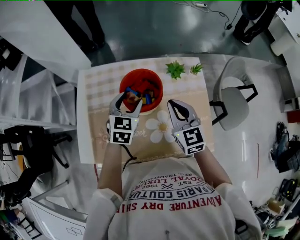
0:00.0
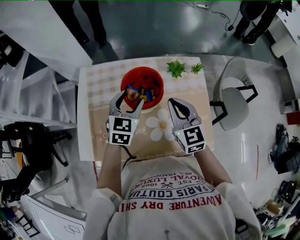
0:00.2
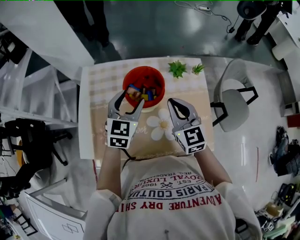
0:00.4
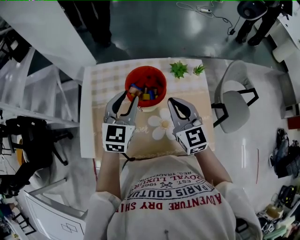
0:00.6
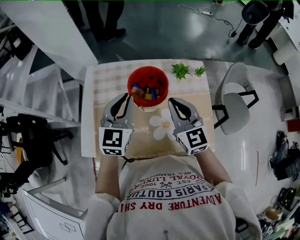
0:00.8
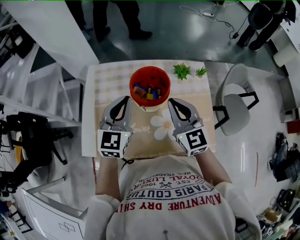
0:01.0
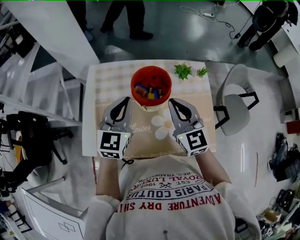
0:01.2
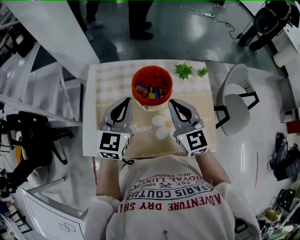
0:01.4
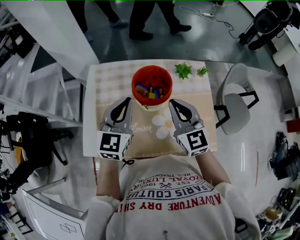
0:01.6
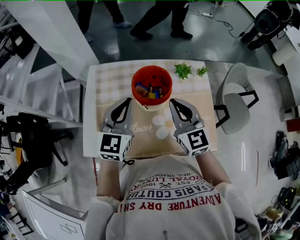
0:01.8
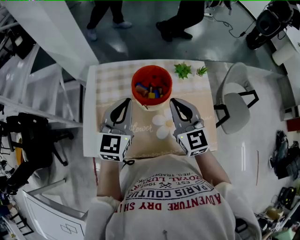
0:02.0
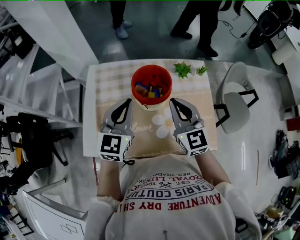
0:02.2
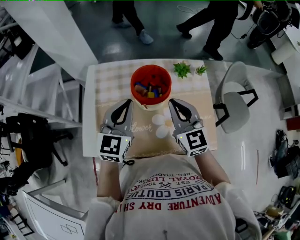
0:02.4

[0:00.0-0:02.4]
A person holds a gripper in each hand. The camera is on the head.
0:00.0 to 0:01.2: The right gripper heads upward, covering roughly 5 cm; the left gripper heads upward, backward and to the left, covering some 15 cm, and closes up.
0:01.2 to 0:02.4: There are only small adjustments of the grippers.

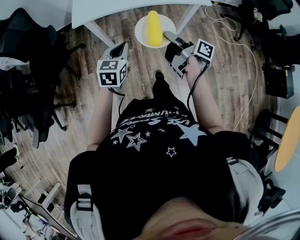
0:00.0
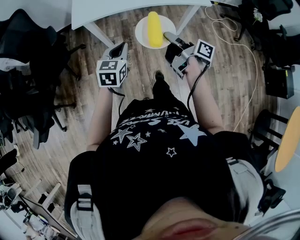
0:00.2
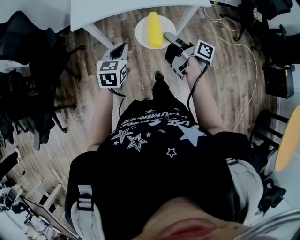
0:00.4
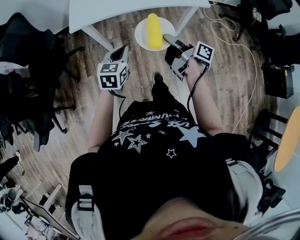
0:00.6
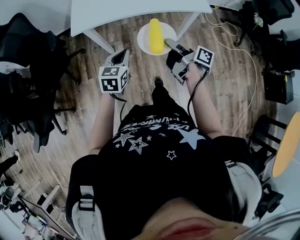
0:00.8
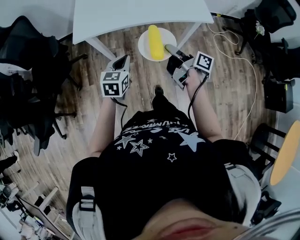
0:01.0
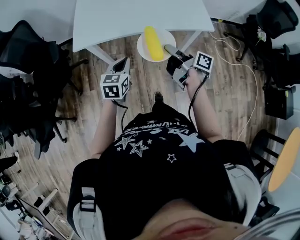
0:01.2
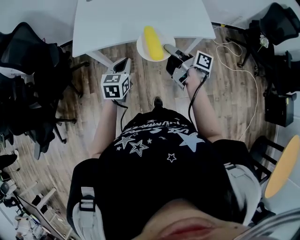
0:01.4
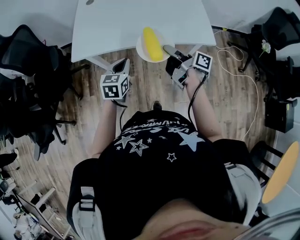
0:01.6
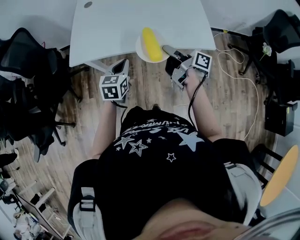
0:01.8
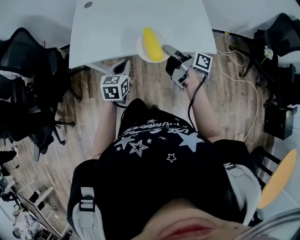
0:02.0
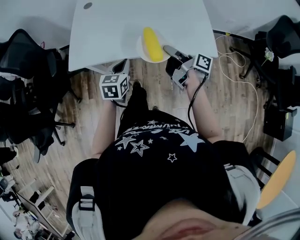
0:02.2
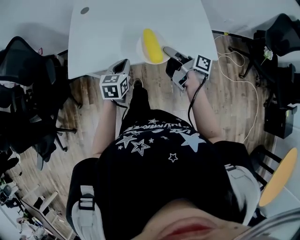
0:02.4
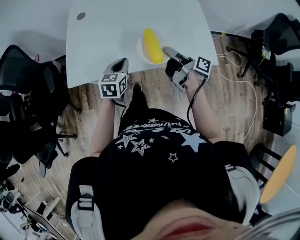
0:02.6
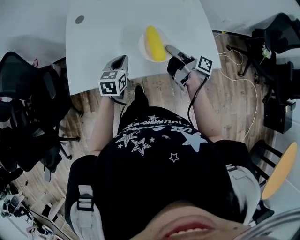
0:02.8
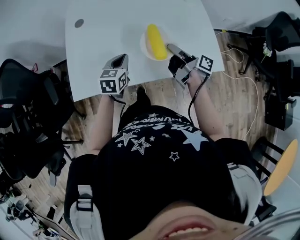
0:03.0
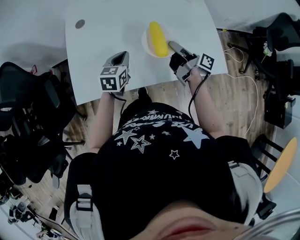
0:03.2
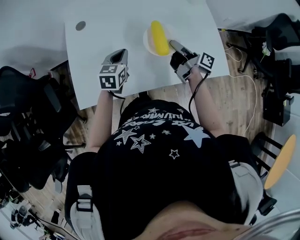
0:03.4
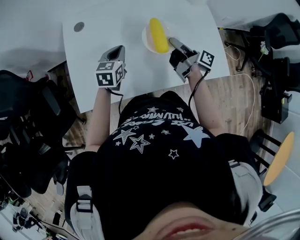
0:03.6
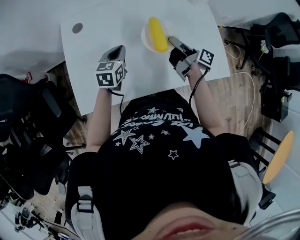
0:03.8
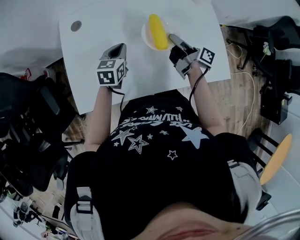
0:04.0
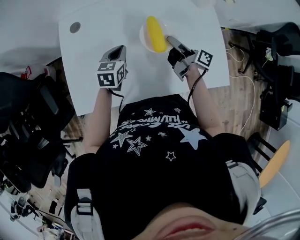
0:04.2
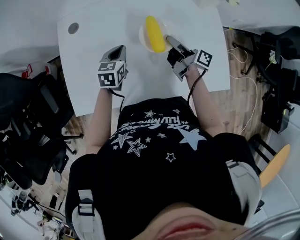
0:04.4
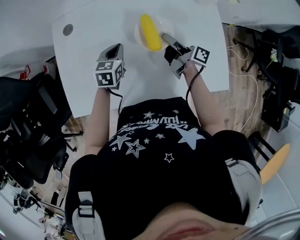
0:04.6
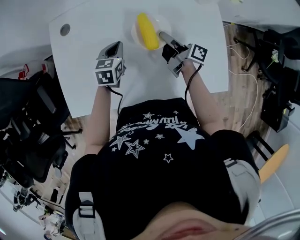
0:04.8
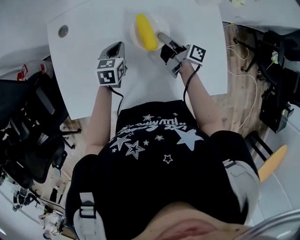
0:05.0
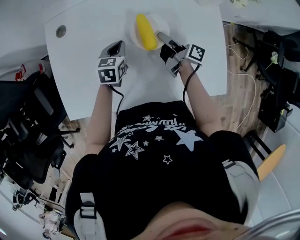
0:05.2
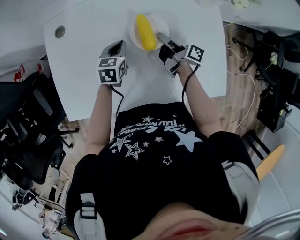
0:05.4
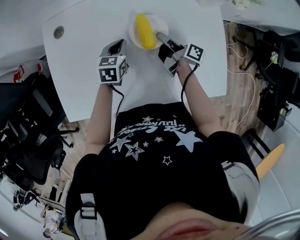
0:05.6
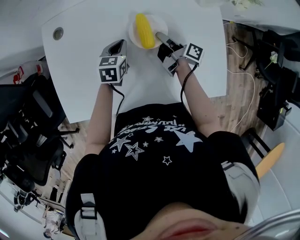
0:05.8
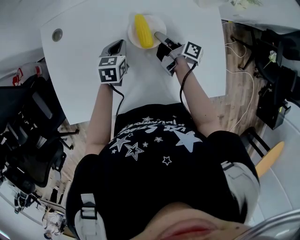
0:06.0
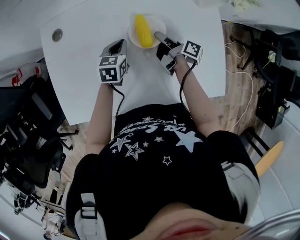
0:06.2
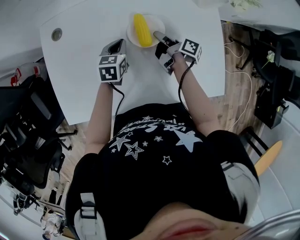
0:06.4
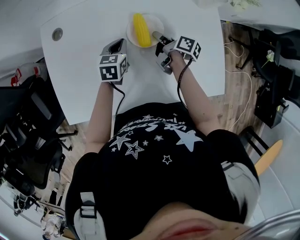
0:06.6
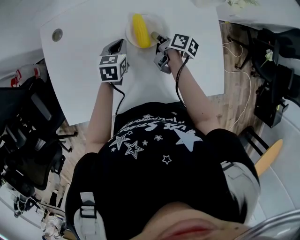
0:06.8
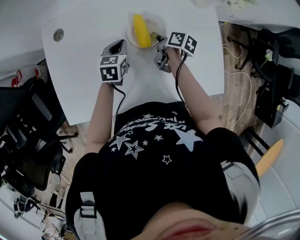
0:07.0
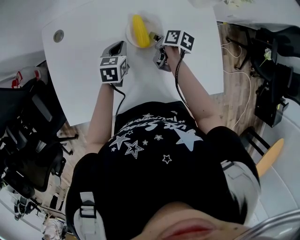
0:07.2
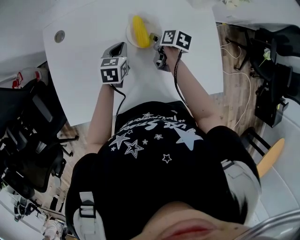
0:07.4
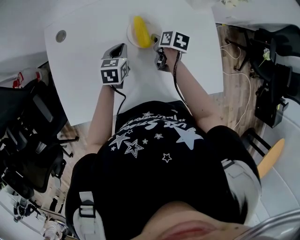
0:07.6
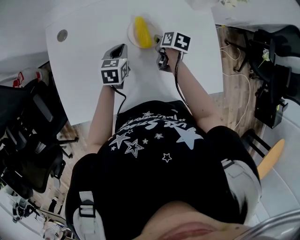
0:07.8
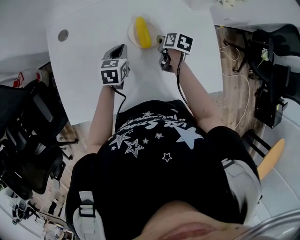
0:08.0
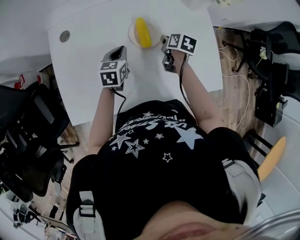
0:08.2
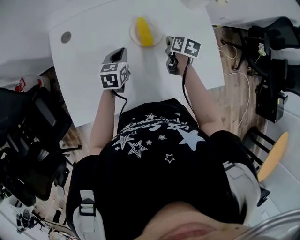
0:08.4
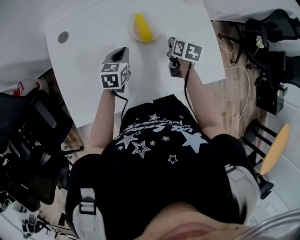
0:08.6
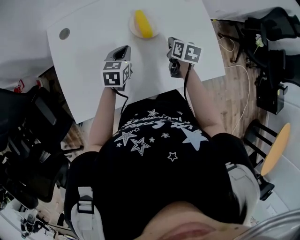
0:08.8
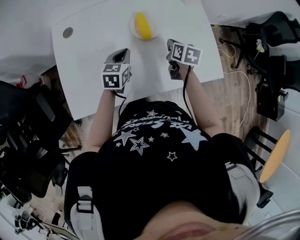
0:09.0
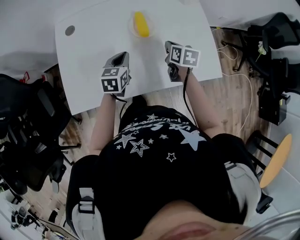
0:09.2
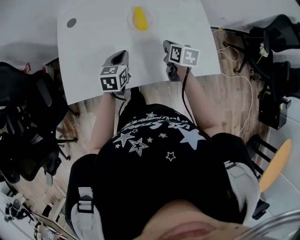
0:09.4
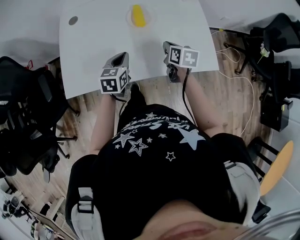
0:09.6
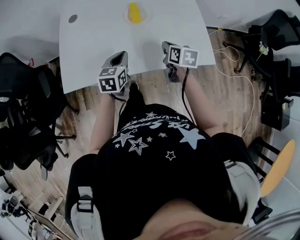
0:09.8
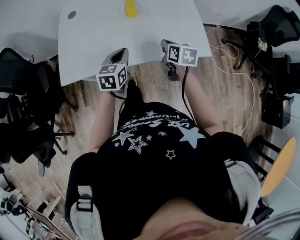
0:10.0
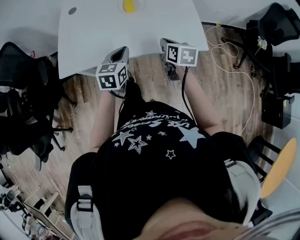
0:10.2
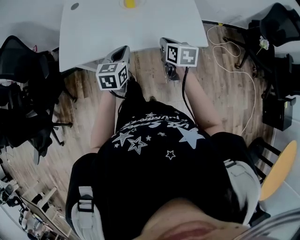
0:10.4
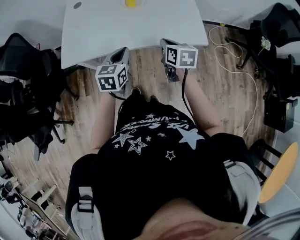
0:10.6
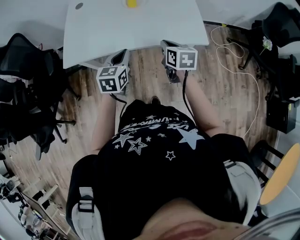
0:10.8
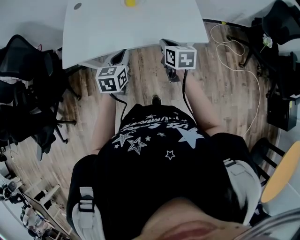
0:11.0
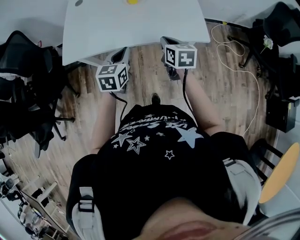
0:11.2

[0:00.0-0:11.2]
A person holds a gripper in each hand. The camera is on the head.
0:00.0 to 0:01.6: The left gripper shifts by about 20 cm.
0:01.6 to 0:03.2: The left gripper changes place by approximately 30 cm.
0:03.2 to 0:04.8: The left gripper moves roughly 15 cm.
0:04.8 to 0:06.4: The left gripper moves approximately 5 cm.
0:08.0 to 0:09.6: The left gripper changes place by some 20 cm.
0:09.6 to 0:11.2: The left gripper changes place by roughly 20 cm.

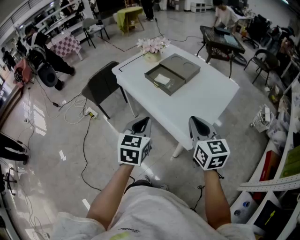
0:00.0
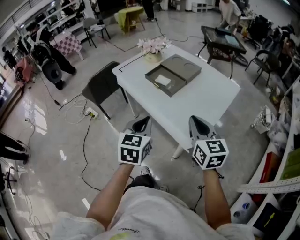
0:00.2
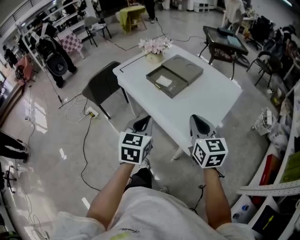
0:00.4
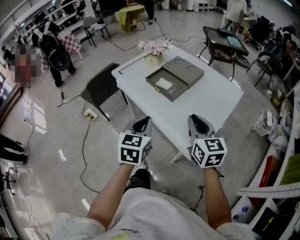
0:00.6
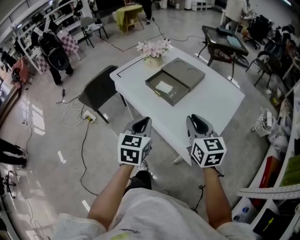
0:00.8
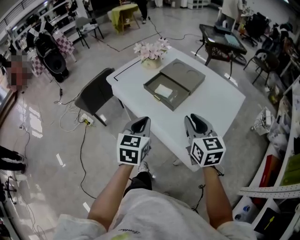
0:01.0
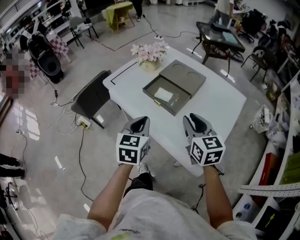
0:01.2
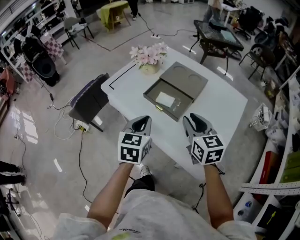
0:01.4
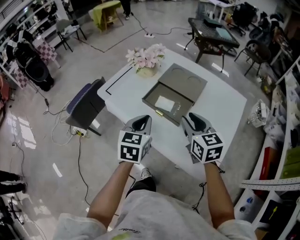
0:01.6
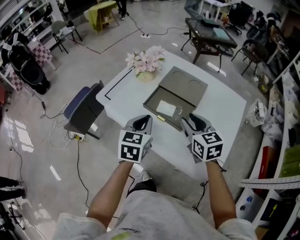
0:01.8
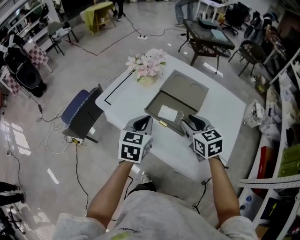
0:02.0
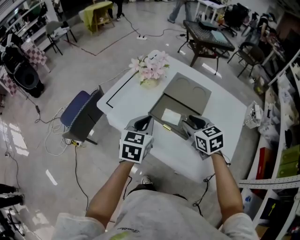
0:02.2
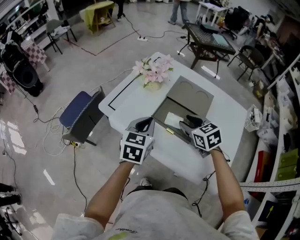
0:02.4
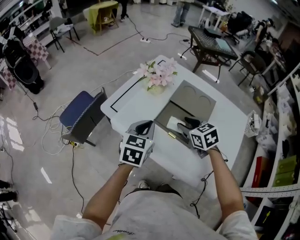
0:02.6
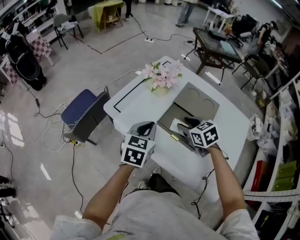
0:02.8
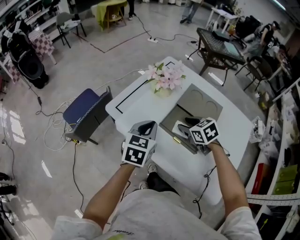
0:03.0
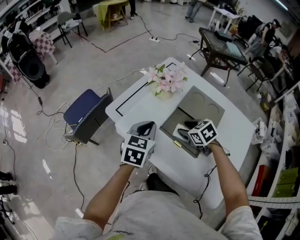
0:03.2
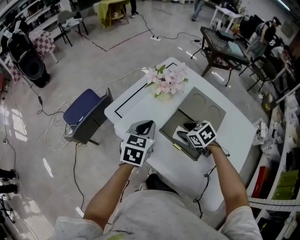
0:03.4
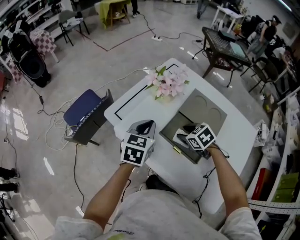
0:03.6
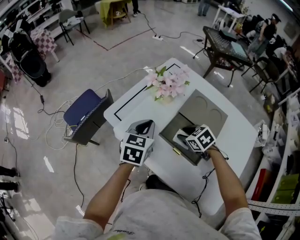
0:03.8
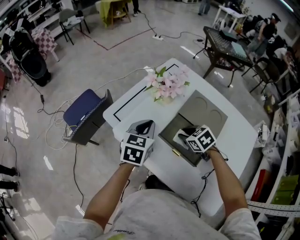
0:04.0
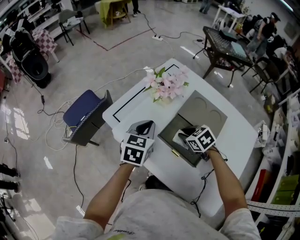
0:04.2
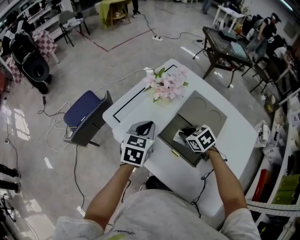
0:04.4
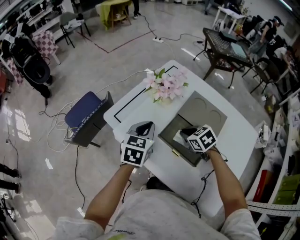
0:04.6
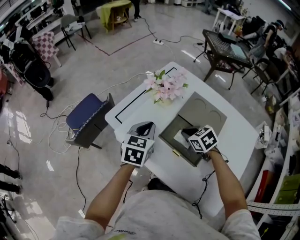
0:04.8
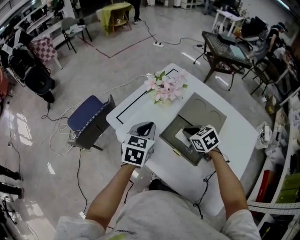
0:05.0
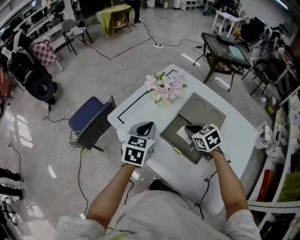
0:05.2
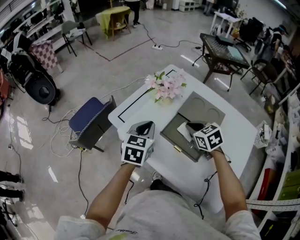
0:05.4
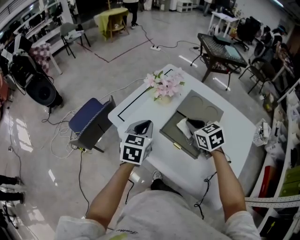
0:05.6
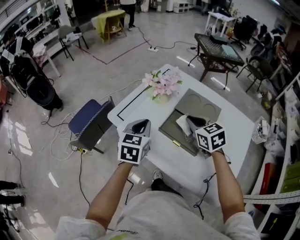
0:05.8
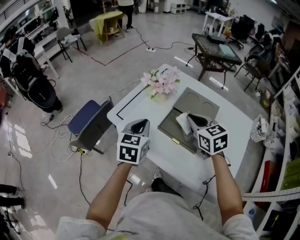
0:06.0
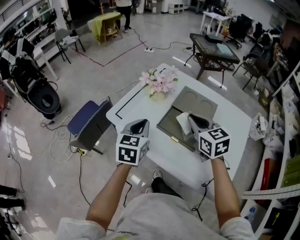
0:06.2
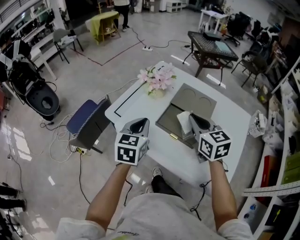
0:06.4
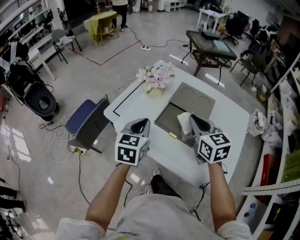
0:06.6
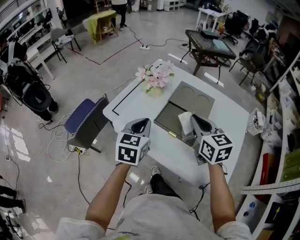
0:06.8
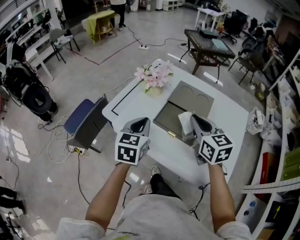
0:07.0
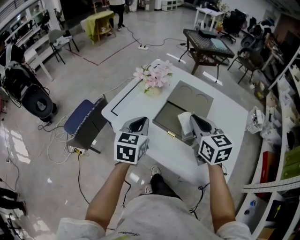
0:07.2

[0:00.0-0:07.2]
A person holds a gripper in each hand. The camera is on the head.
0:00.0 to 0:01.4: The two grippers go about 20 cm forward. The right gripper opens up.
0:01.4 to 0:02.8: The right gripper moves forward, to the left and downward, roughly 20 cm, and swivels roughly 30 degrees. Meanwhile the left gripper moves forward and to the left, some 15 cm.
0:02.8 to 0:04.4: The right gripper is displaced downward by about 5 cm, and closes its fingers, while the left gripper goes roughly 10 cm forward.
0:04.4 to 0:05.8: The left gripper shifts by roughly 5 cm. The right gripper moves upward, approximately 15 cm, and rotates roughly 30 degrees.
0:05.8 to 0:07.2: The right gripper heads backward and upward, covering some 10 cm, and rotates roughly 20 degrees.

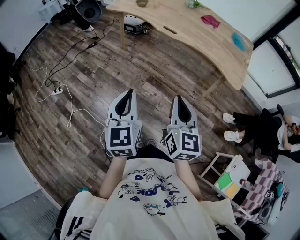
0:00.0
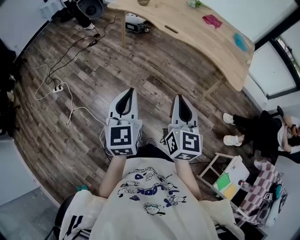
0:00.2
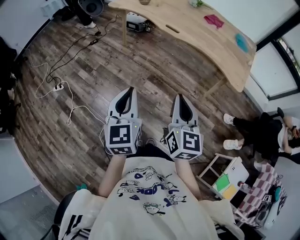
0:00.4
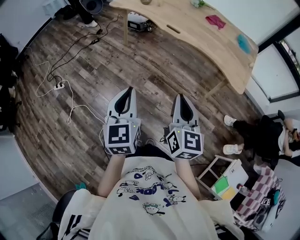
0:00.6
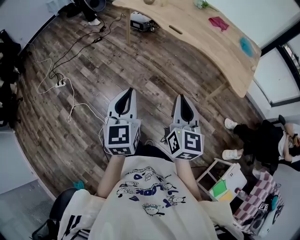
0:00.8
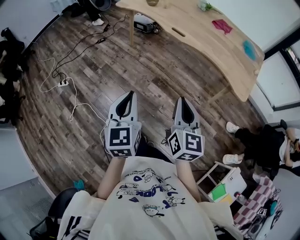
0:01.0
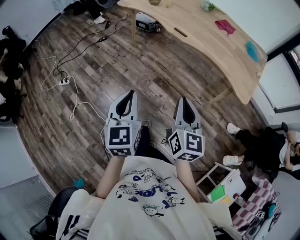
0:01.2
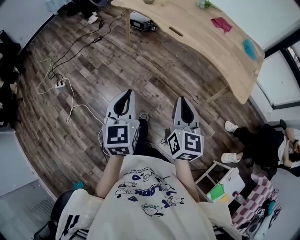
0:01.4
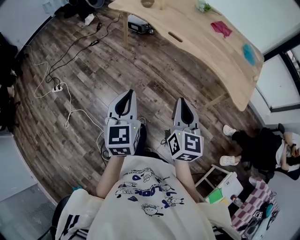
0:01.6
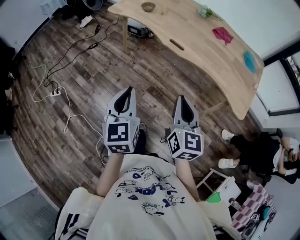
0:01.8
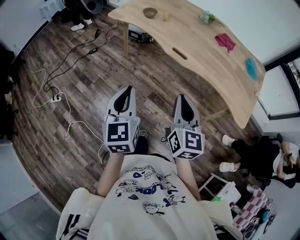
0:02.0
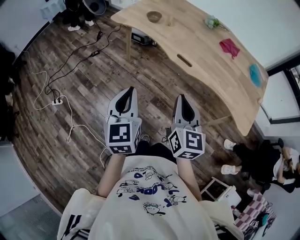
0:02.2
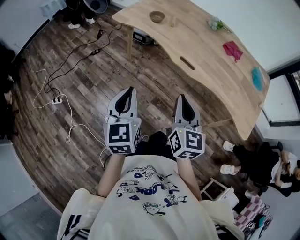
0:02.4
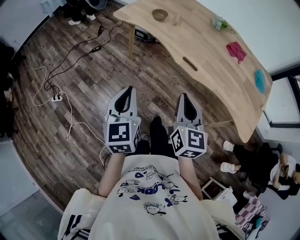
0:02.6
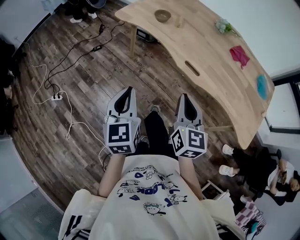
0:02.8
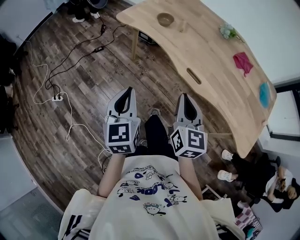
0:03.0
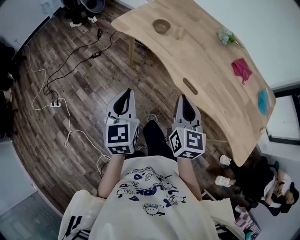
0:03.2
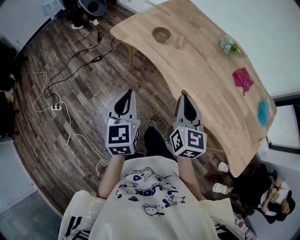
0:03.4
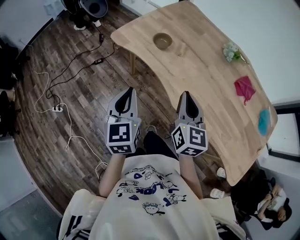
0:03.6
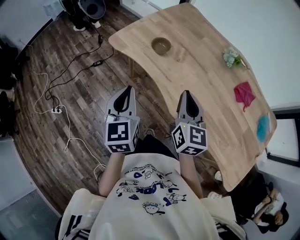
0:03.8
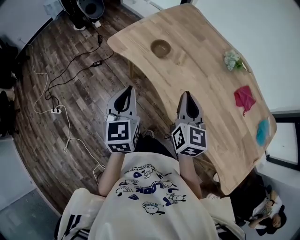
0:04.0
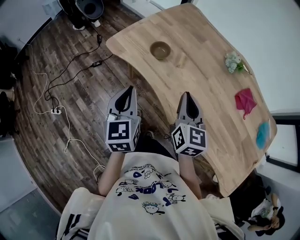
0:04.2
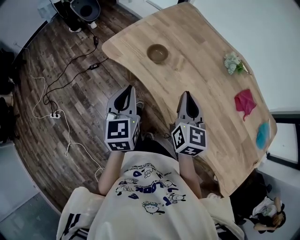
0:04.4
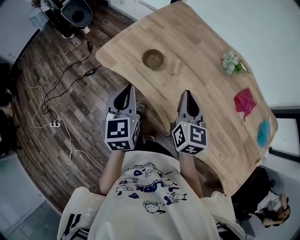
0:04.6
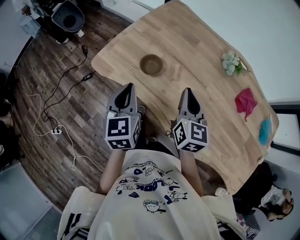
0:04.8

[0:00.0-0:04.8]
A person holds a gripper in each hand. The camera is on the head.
0:00.0 to 0:01.6: Both grippers travel together forward, roughly 10 cm.
0:01.6 to 0:03.2: Both grippers move forward, roughly 35 cm.
0:03.2 to 0:04.8: The two grippers go approximately 30 cm forward.
